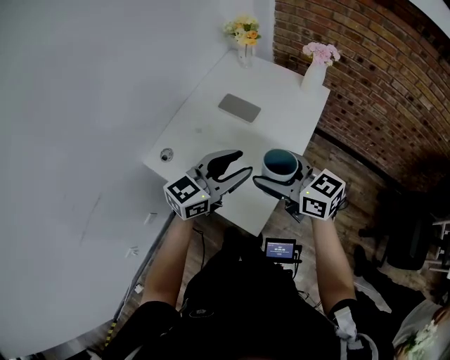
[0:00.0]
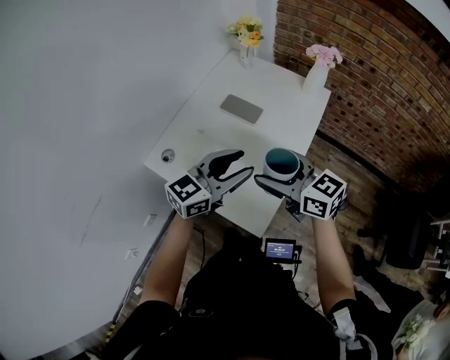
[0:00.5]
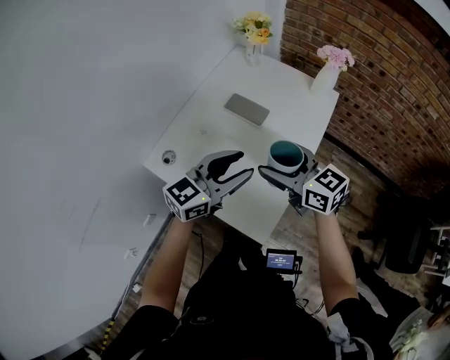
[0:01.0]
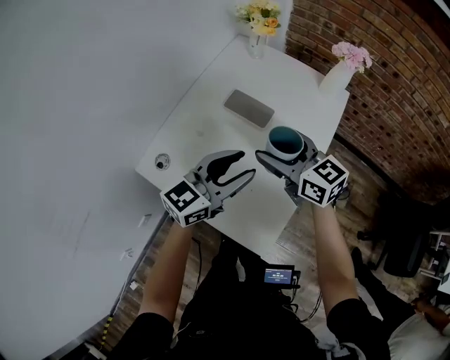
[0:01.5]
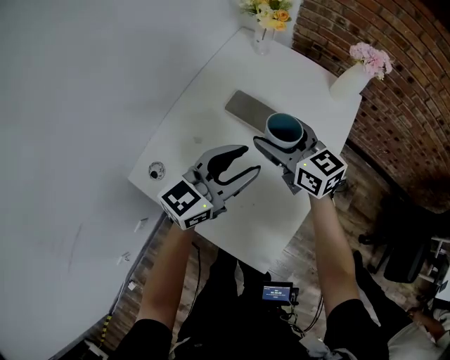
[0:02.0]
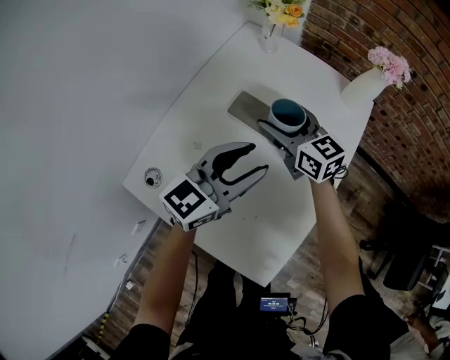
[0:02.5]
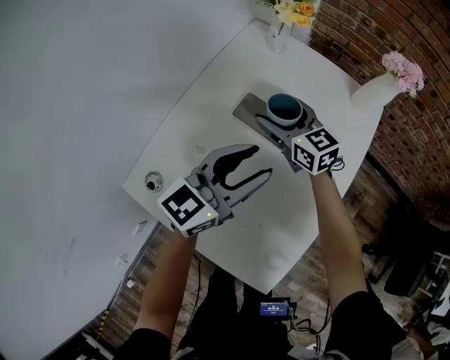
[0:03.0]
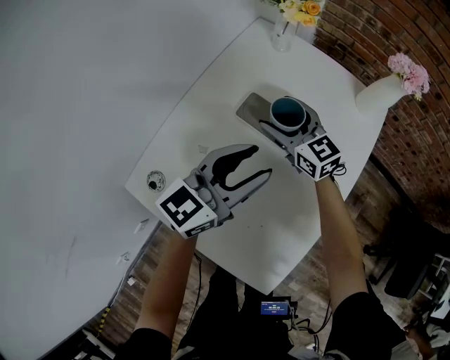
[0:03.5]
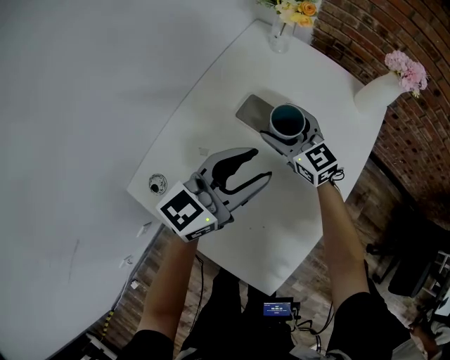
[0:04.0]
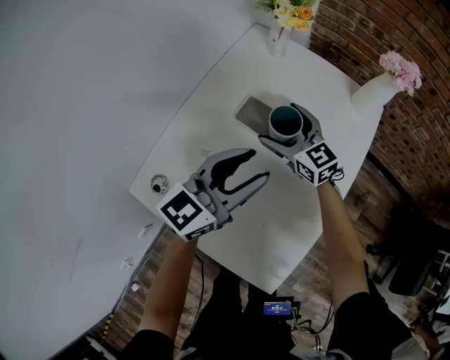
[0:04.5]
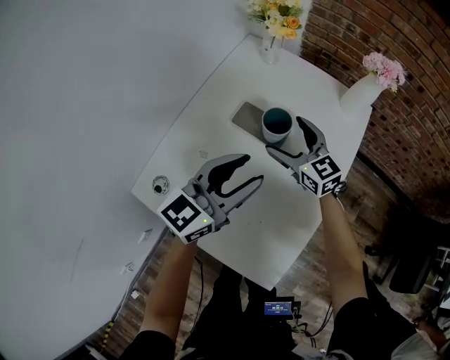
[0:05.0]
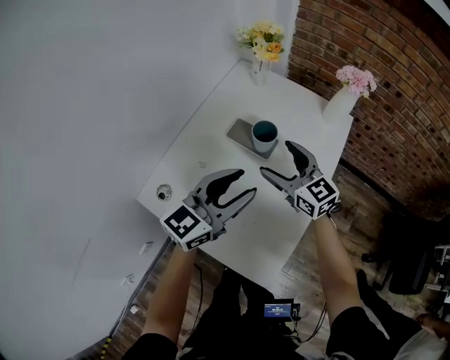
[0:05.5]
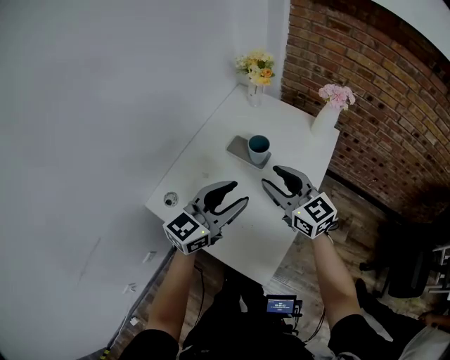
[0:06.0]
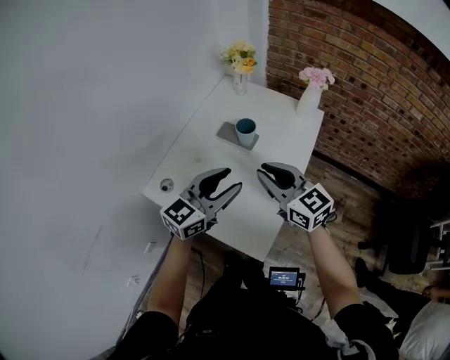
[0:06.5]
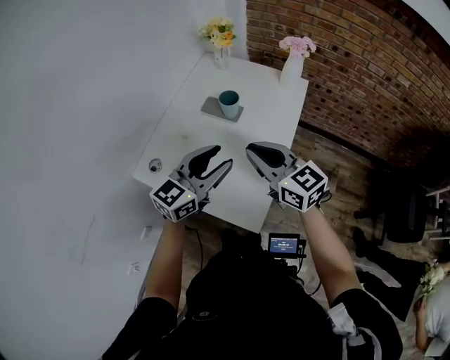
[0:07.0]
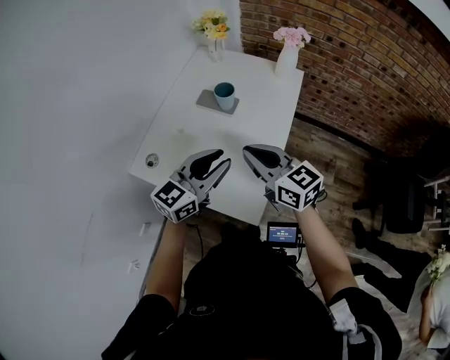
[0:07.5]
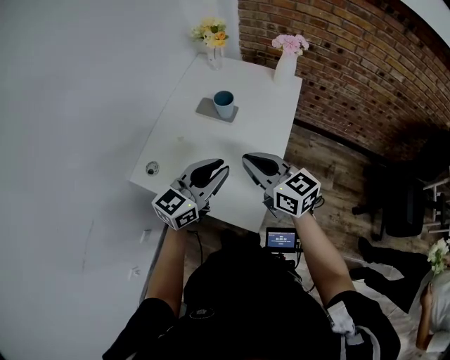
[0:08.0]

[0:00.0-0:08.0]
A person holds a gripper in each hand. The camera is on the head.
0:00.0 to 0:02.0: The left gripper is displaced forward and downward by about 15 cm; the right gripper travels forward and downward by about 25 cm.
0:02.0 to 0:04.0: The right gripper travels downward and forward by about 15 cm; the left gripper moves forward, about 5 cm.
0:04.0 to 0:06.0: The left gripper goes about 15 cm backward and upward, while the right gripper travels backward and upward by about 25 cm, and closes its fingers.
0:06.0 to 0:08.0: The right gripper is displaced backward by roughly 10 cm, and closes; the left gripper moves backward, approximately 10 cm, and closes up.

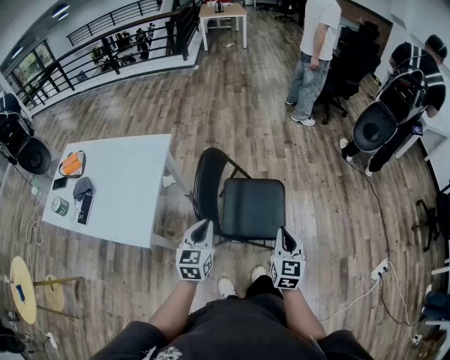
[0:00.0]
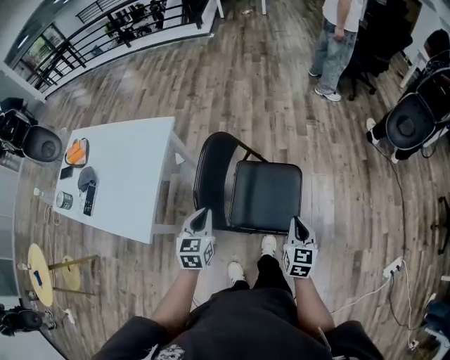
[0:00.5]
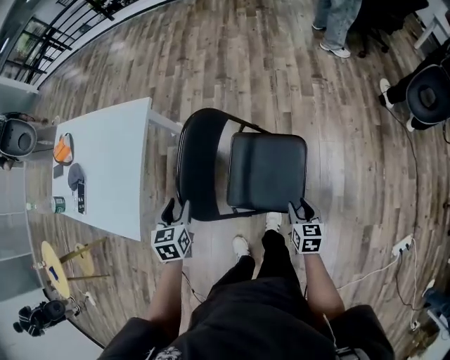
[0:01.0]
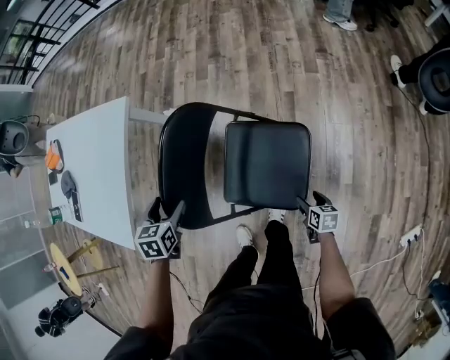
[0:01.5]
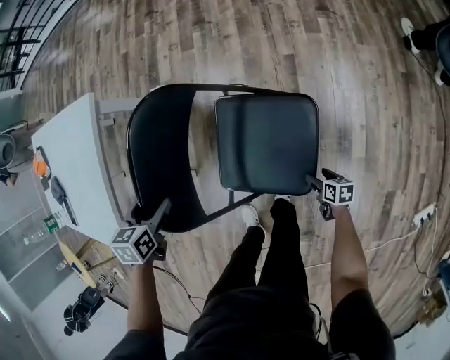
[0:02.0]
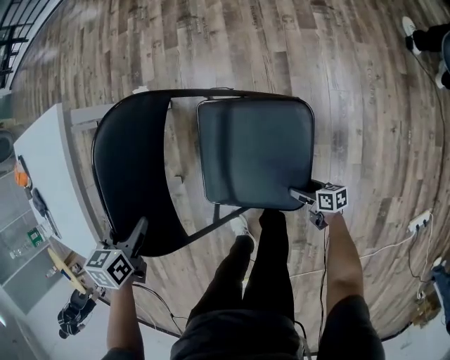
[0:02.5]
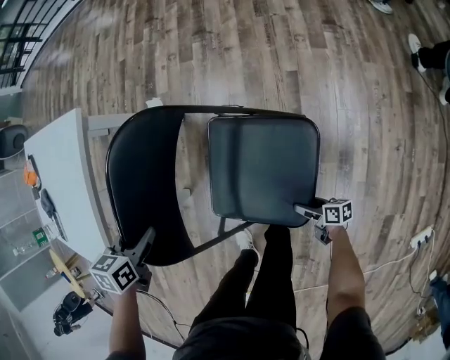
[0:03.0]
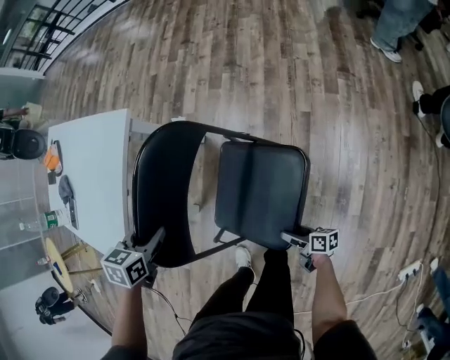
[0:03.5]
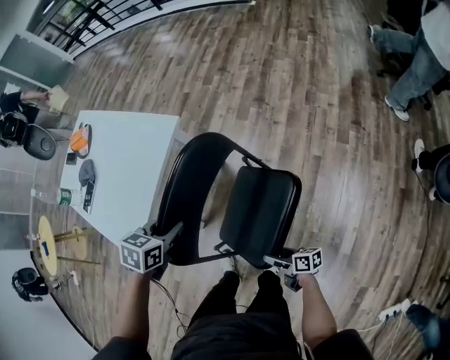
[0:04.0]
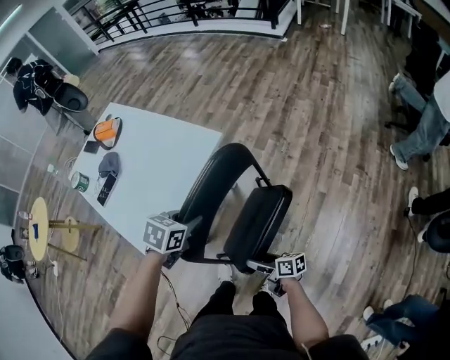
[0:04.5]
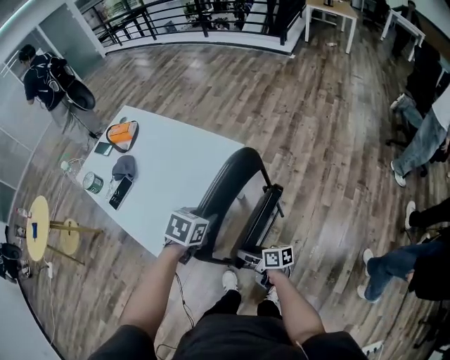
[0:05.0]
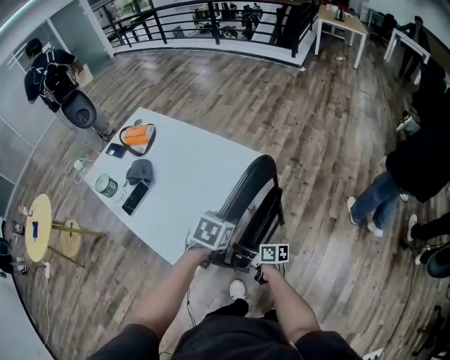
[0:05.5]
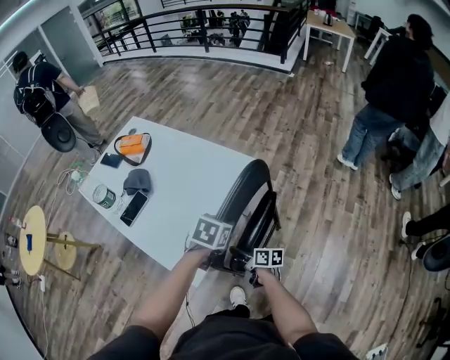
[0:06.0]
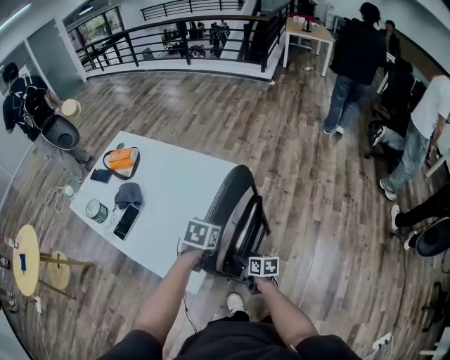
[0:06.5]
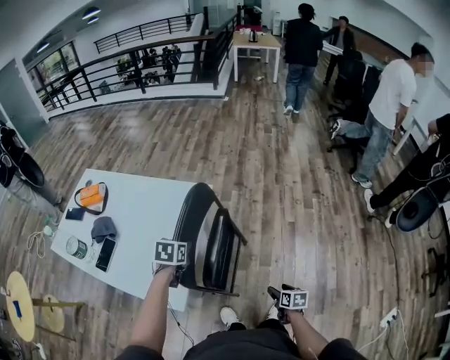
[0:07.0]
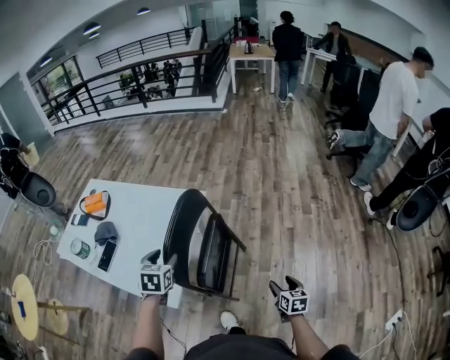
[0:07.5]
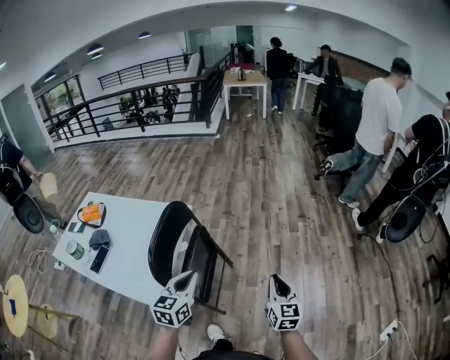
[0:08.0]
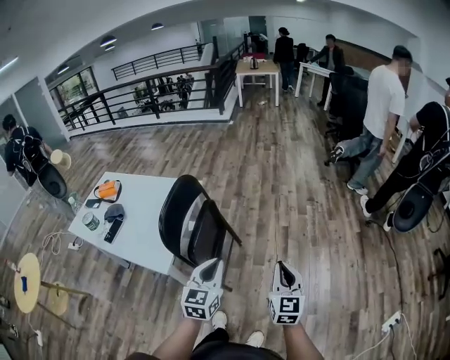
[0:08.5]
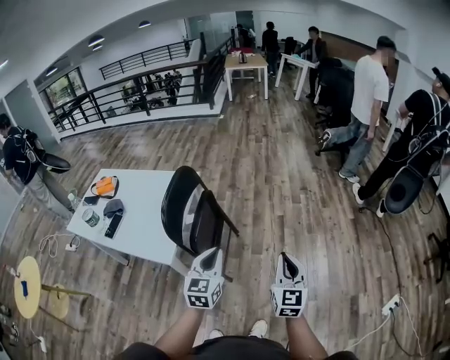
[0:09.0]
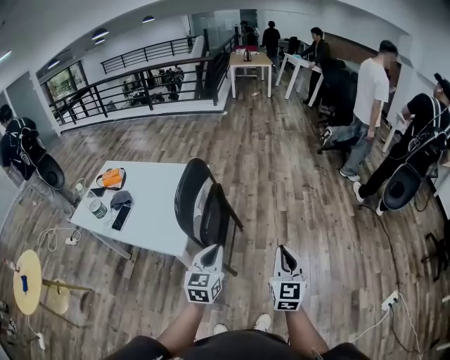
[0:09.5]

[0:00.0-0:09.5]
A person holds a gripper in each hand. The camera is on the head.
0:00.0 to 0:02.0: The right gripper heads downward, covering some 50 cm, tilts its fingers roughly 30 degrees downward, and opens. The left gripper changes place by some 35 cm, tilts its fingers some 40 degrees downward, and opens.
0:02.0 to 0:04.0: The right gripper shifts approximately 30 cm upward, to the left and forward, and tilts its fingers about 30 degrees upward, while the left gripper goes roughly 15 cm upward, and closes.
0:04.0 to 0:05.5: The right gripper travels to the left, forward and upward by roughly 40 cm. The left gripper travels to the left and forward by approximately 20 cm.
0:05.5 to 0:07.5: The left gripper is displaced to the left, upward and backward by some 15 cm, and opens its fingers. The right gripper is displaced to the right and backward by about 35 cm, and turns by roughly 60 degrees.
0:07.5 to 0:09.5: The right gripper heads upward and backward, covering some 35 cm, tilts its fingers roughly 30 degrees upward, and closes up. The left gripper is displaced backward and to the right by about 35 cm, rotates roughly 30 degrees, and closes.

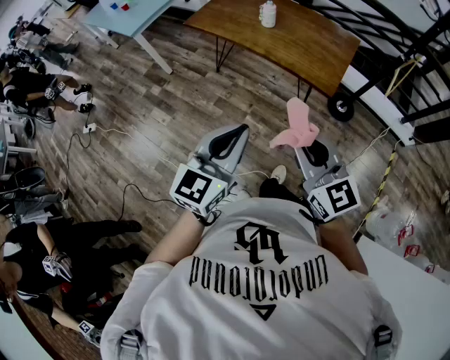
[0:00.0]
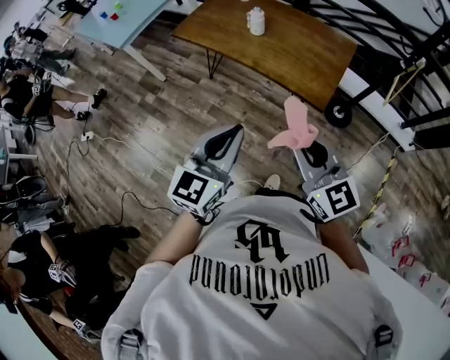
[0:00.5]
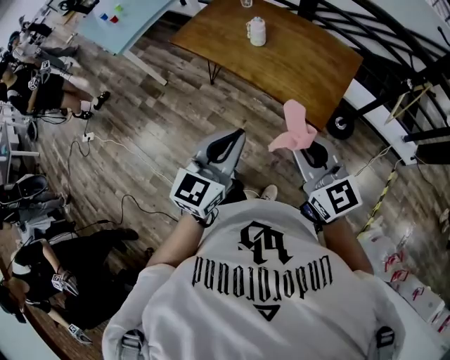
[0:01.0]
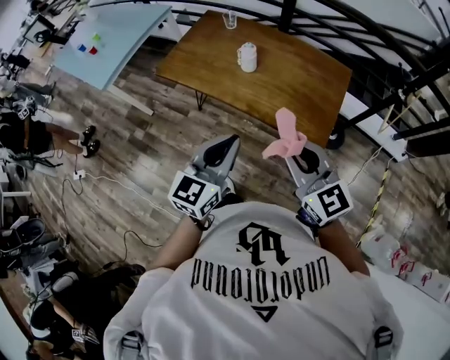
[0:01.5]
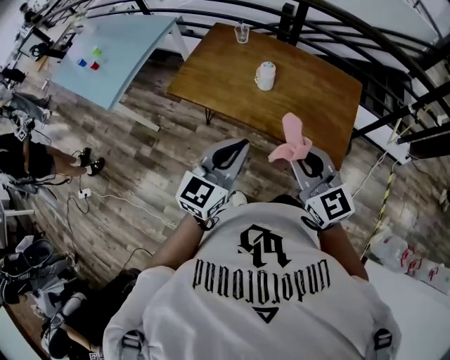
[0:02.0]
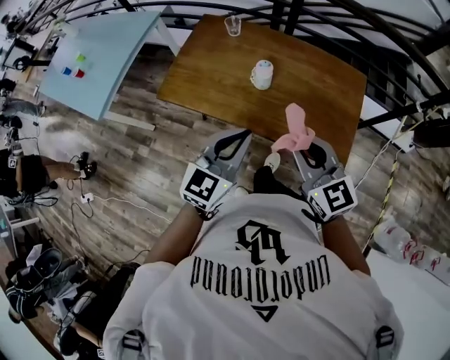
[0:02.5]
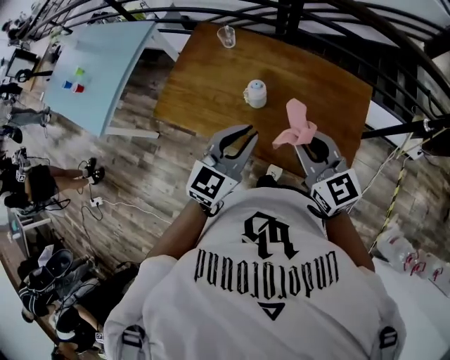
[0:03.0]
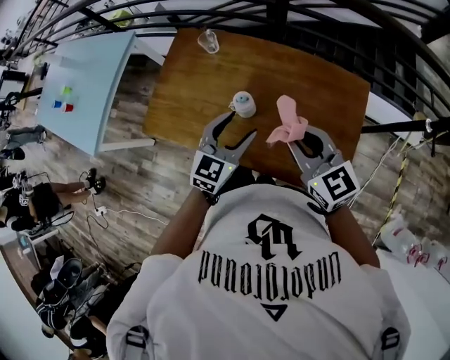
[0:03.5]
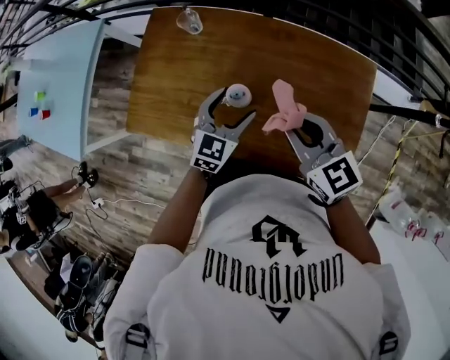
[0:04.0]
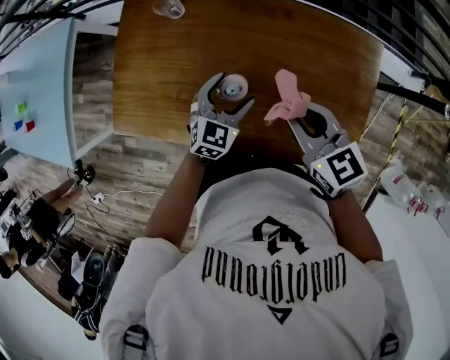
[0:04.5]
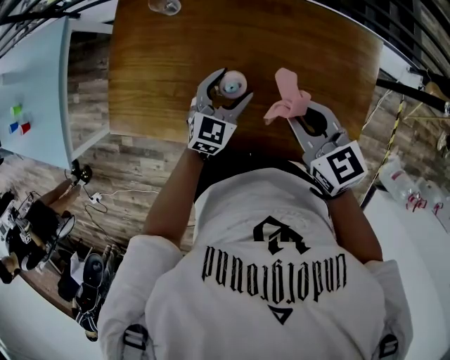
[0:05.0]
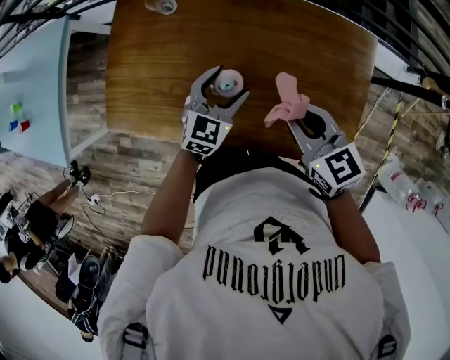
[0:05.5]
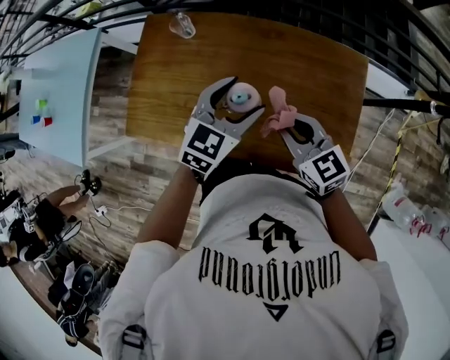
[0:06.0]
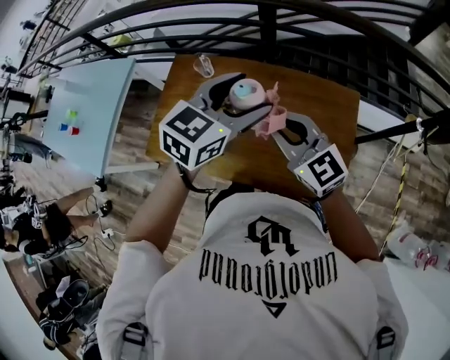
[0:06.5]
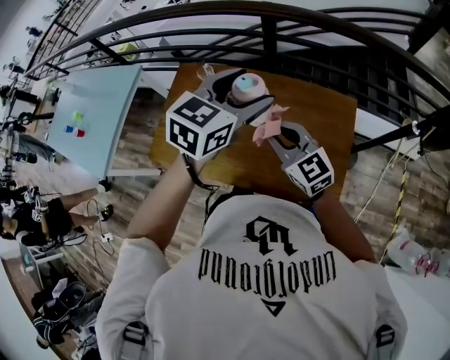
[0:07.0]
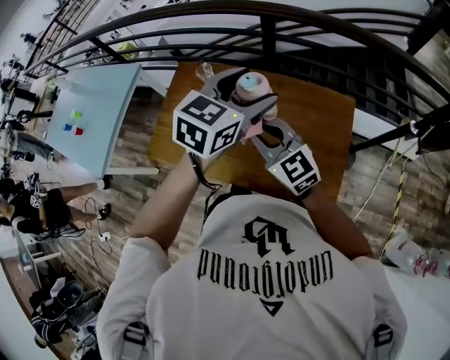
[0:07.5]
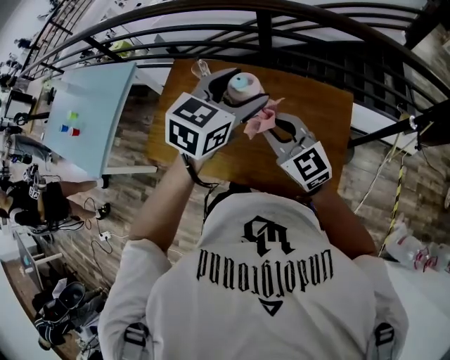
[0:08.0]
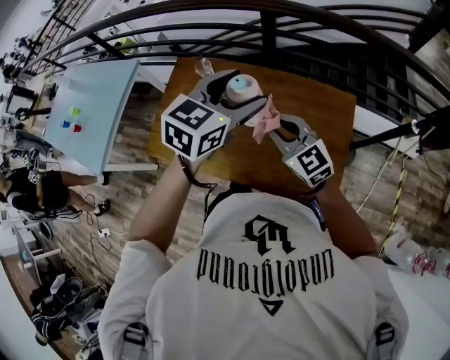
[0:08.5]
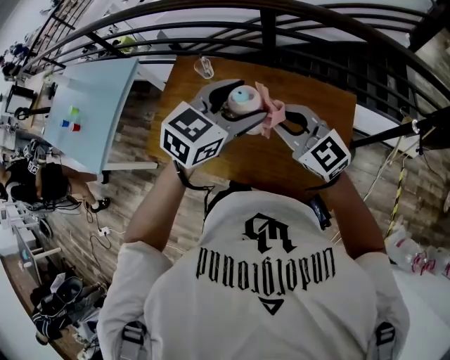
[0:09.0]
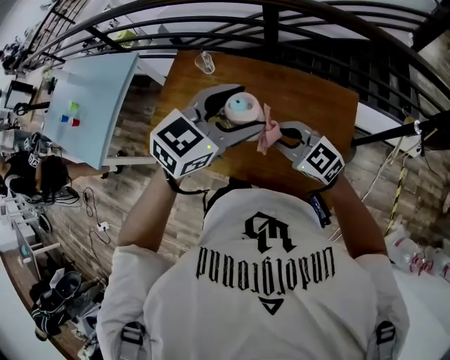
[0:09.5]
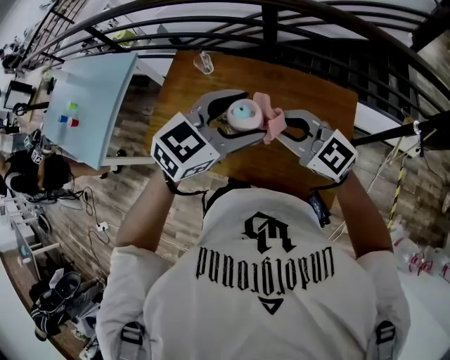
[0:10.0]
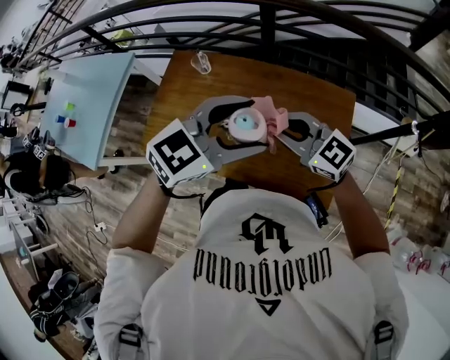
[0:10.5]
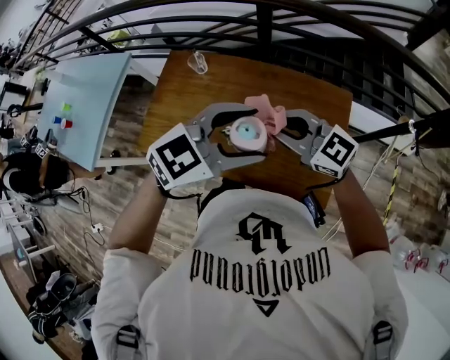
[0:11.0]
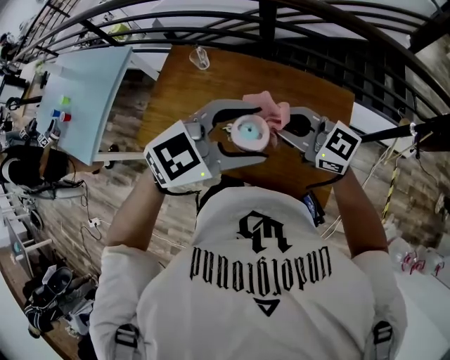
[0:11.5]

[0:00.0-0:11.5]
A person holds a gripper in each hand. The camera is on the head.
0:00.0 to 0:02.0: Both grippers move forward, roughly 40 cm.
0:02.0 to 0:04.0: The right gripper is displaced forward by roughly 35 cm, while the left gripper travels forward and downward by some 40 cm, turns by roughly 20 degrees, and opens.
0:04.0 to 0:06.0: The right gripper shifts by approximately 5 cm; the left gripper travels upward and to the right by some 10 cm.
0:06.0 to 0:07.5: The right gripper travels upward by some 10 cm, and swivels about 20 degrees; the left gripper heads upward, covering roughly 20 cm.
0:07.5 to 0:09.5: The right gripper shifts approximately 5 cm downward. The left gripper ends up some 5 cm from where it was.
0:09.5 to 0:11.5: The left gripper moves about 5 cm. Meanwhile the right gripper is displaced upward by some 10 cm.
